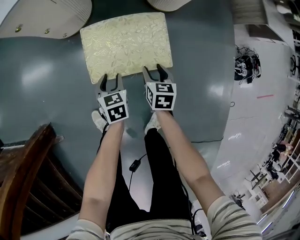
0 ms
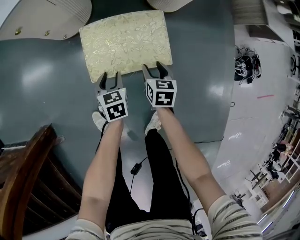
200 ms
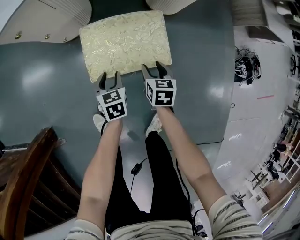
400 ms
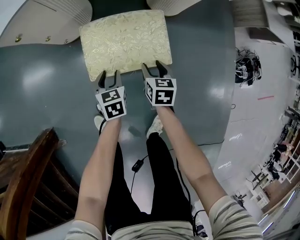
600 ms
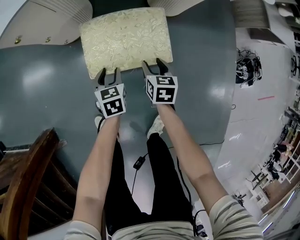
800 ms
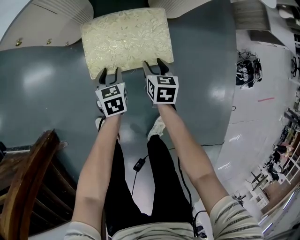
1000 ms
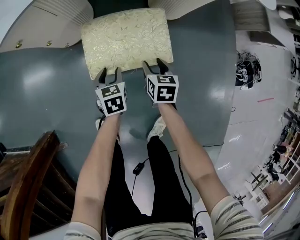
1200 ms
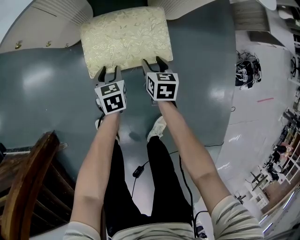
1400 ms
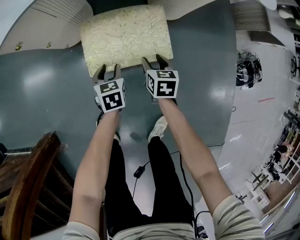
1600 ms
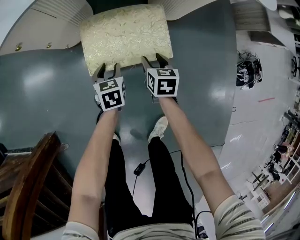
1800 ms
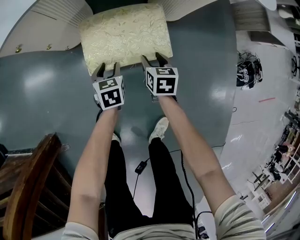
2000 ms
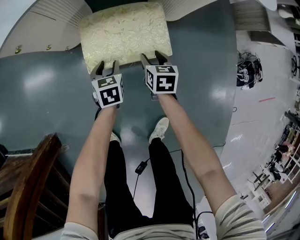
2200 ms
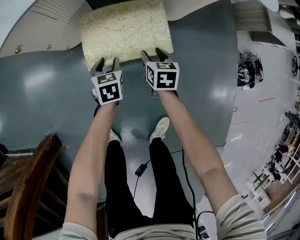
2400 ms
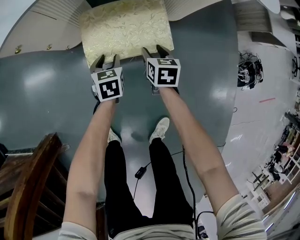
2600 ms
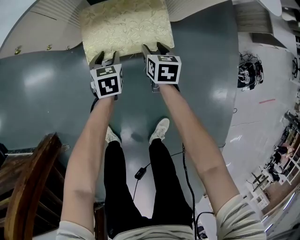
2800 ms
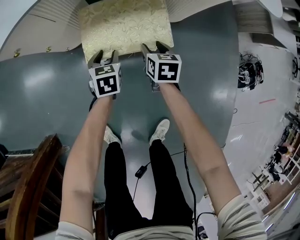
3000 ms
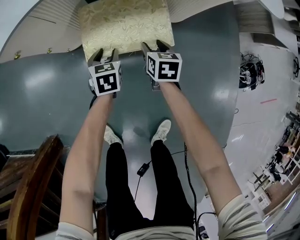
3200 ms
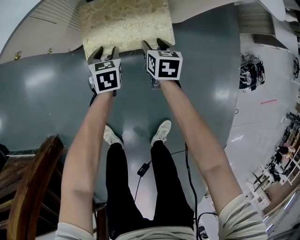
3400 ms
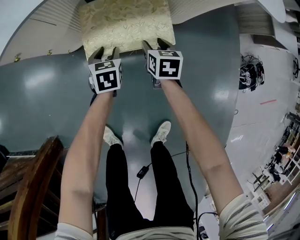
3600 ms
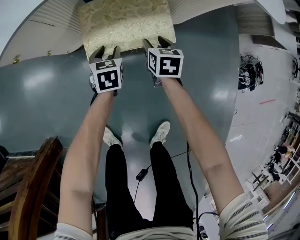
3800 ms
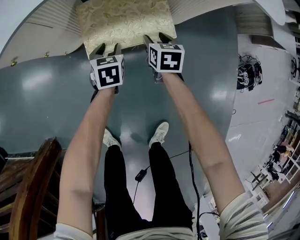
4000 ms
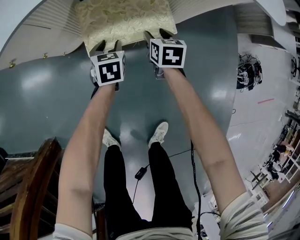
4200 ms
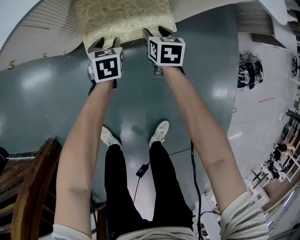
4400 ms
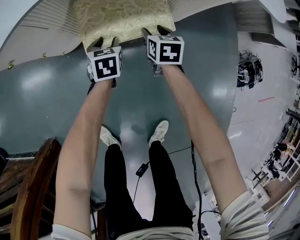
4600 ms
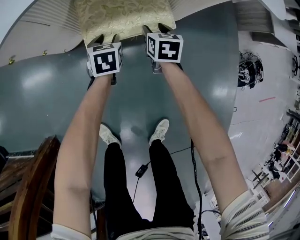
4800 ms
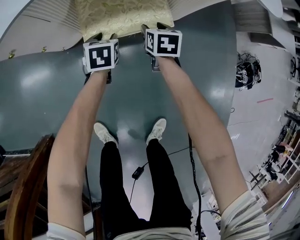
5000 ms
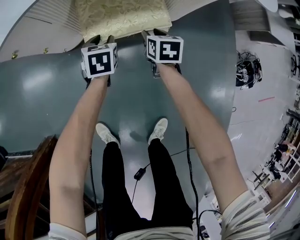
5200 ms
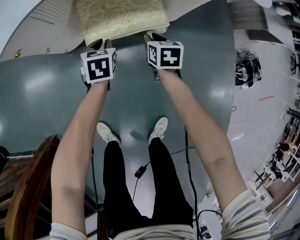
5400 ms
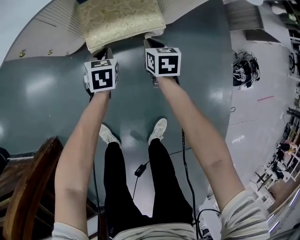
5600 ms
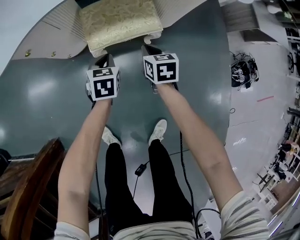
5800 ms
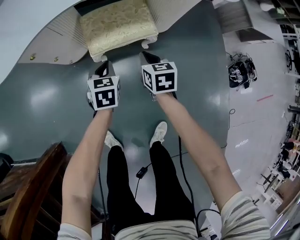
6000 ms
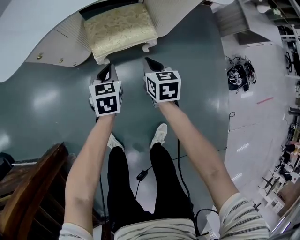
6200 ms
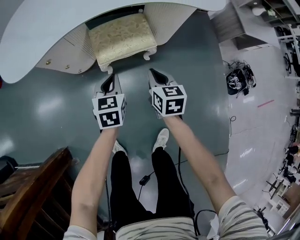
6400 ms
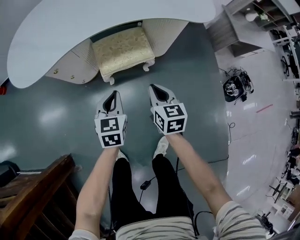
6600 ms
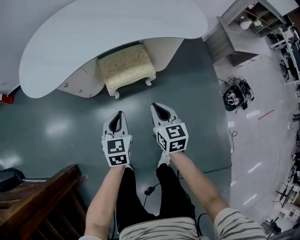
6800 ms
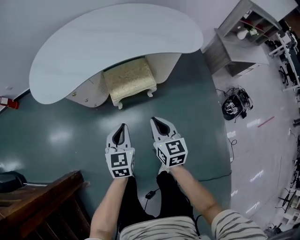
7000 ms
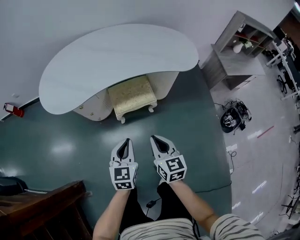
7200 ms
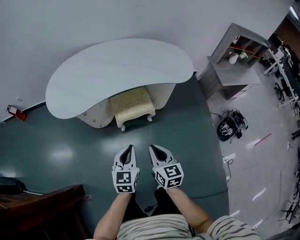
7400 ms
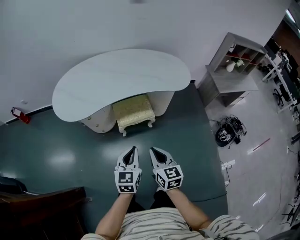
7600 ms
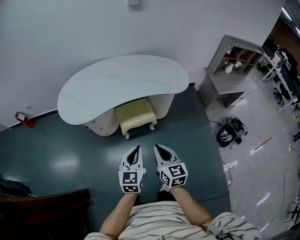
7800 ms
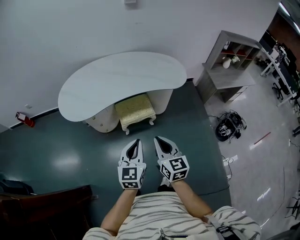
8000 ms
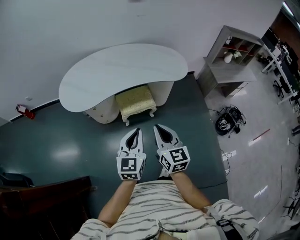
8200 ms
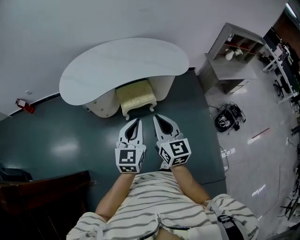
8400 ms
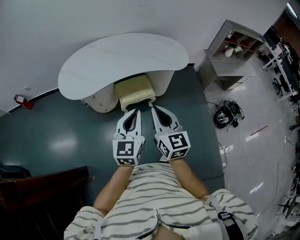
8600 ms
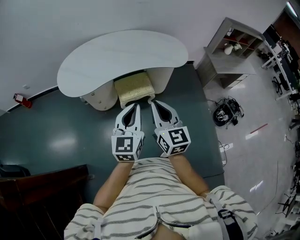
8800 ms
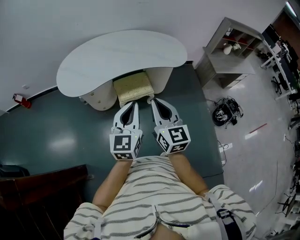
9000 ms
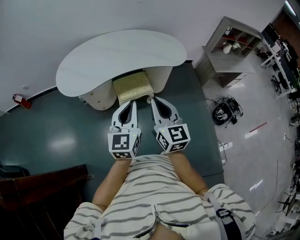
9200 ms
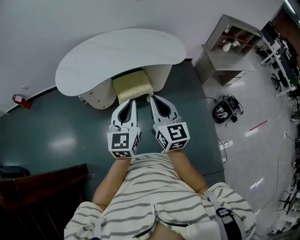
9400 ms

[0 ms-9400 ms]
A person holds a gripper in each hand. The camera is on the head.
0 ms to 1600 ms: Both grippers move forward, some 10 cm.
1600 ms to 3200 ms: The grippers both shift forward by some 10 cm.
3200 ms to 4800 ms: The grippers both shift forward by roughly 5 cm.
4800 ms to 6200 ms: The two grippers go roughly 20 cm upward and backward. The left gripper closes up, while the right gripper closes up.
6200 ms to 7800 ms: Both grippers move upward and backward, roughly 50 cm. The left gripper rotates some 30 degrees. The right gripper swivels some 20 degrees.
7800 ms to 9400 ms: The two grippers go roughly 10 cm upward.

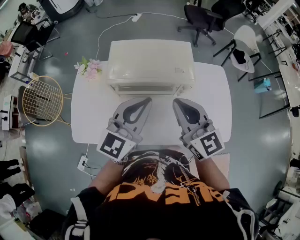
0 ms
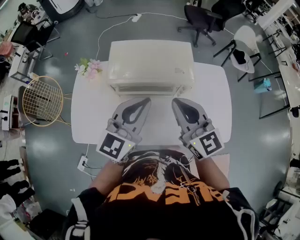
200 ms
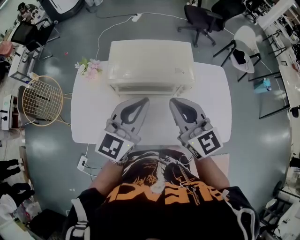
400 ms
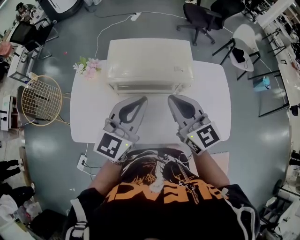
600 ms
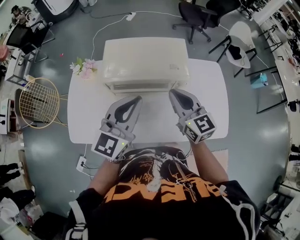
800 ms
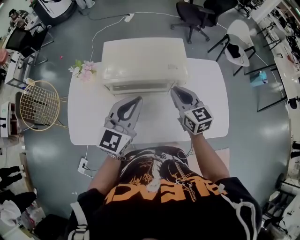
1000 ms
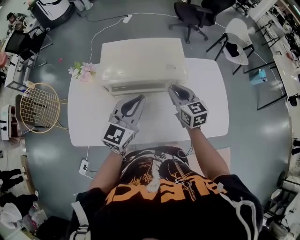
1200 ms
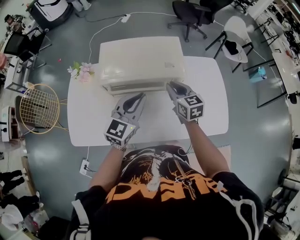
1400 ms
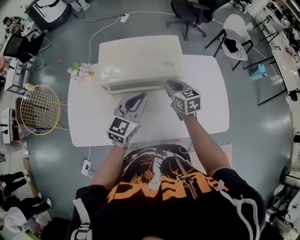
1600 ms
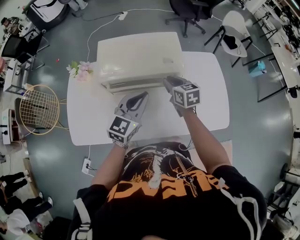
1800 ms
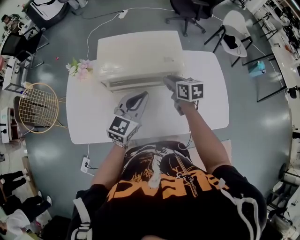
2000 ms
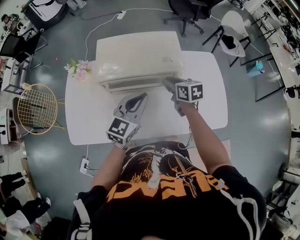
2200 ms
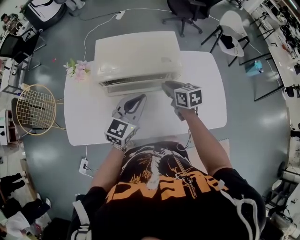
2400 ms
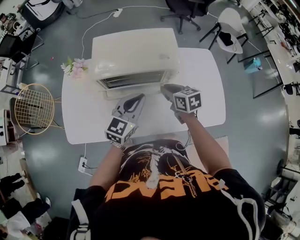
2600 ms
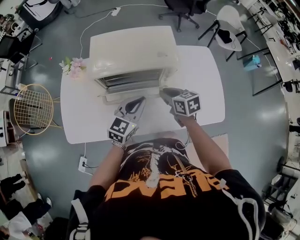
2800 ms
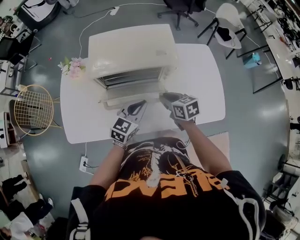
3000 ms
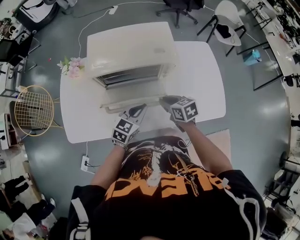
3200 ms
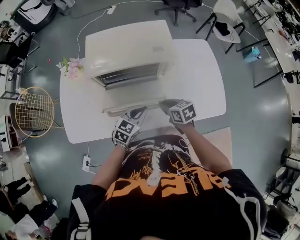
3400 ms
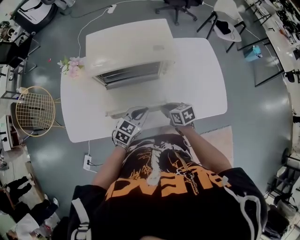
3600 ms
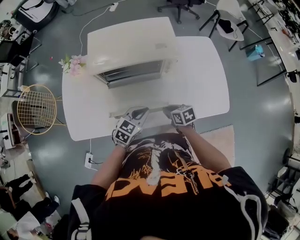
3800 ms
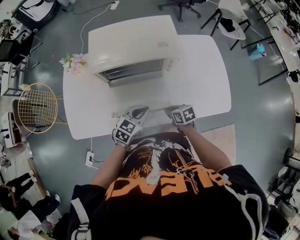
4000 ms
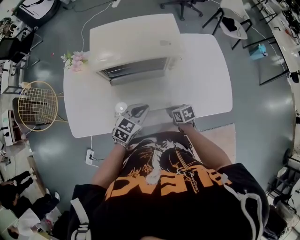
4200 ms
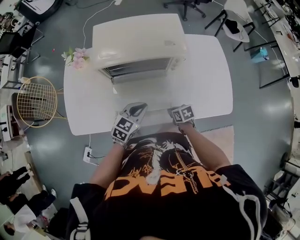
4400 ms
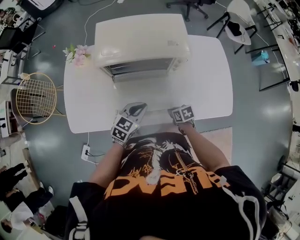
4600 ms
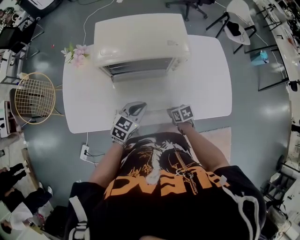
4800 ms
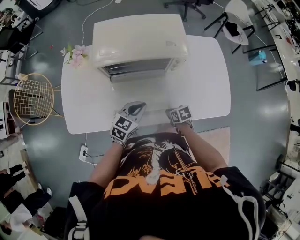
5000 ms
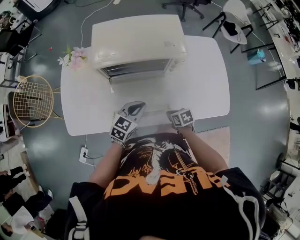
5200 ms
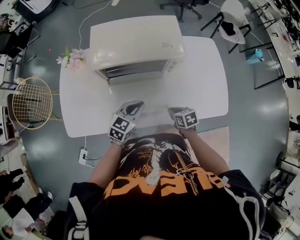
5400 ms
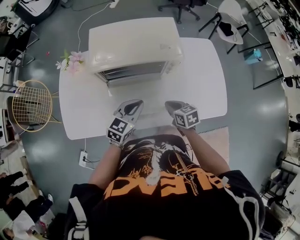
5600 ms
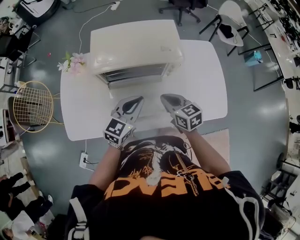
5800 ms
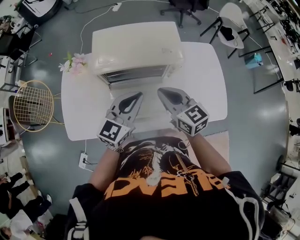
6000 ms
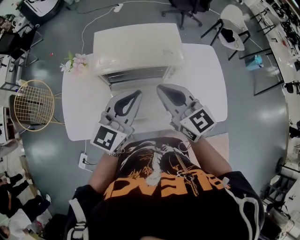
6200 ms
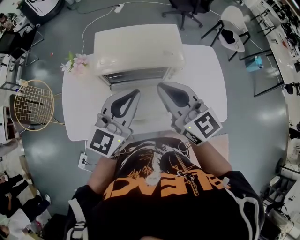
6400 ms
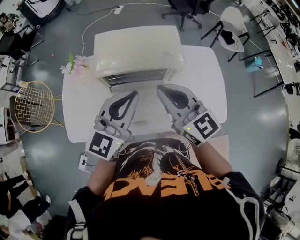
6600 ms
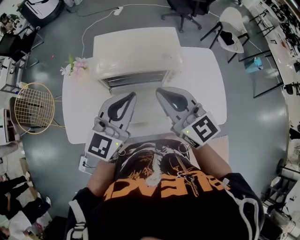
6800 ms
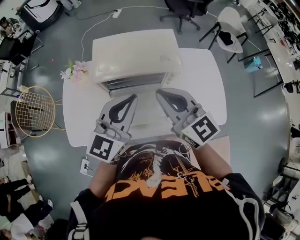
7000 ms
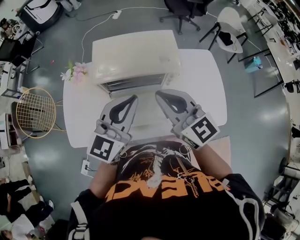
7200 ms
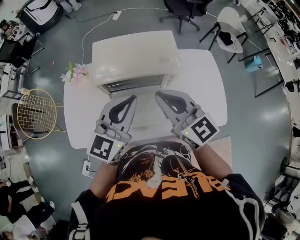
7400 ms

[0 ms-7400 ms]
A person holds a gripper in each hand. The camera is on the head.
0 ms to 1400 ms: The right gripper shifts roughly 20 cm downward and forward, and swivels some 30 degrees. The left gripper is displaced downward by some 10 cm.
1400 ms to 3000 ms: The right gripper travels backward and downward by about 10 cm, and swivels roughly 20 degrees. The left gripper moves downward, about 10 cm.
3000 ms to 4400 ms: The left gripper goes approximately 5 cm downward; the right gripper travels downward and backward by some 20 cm, and turns by approximately 20 degrees.
4400 ms to 6000 ms: The right gripper heads upward, covering approximately 30 cm, and points its fingers some 40 degrees further upward. Meanwhile the left gripper shifts roughly 15 cm upward, and rotates about 20 degrees.
6000 ms to 7400 ms: Both grippers move upward, approximately 10 cm.

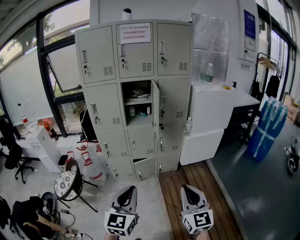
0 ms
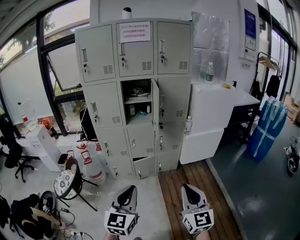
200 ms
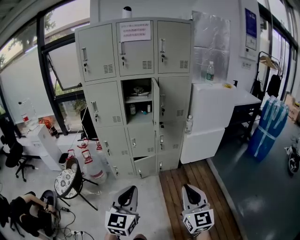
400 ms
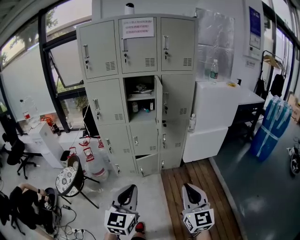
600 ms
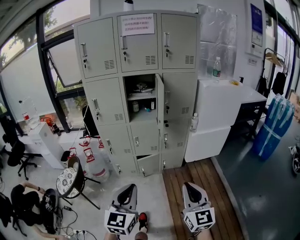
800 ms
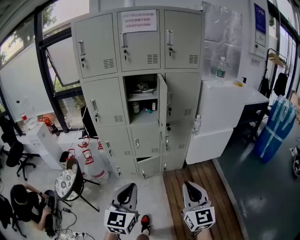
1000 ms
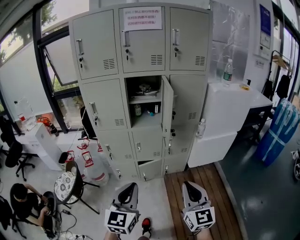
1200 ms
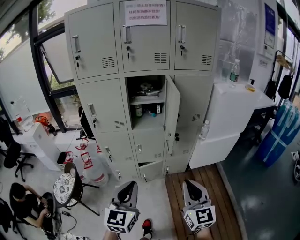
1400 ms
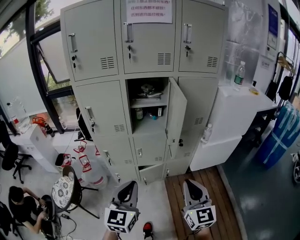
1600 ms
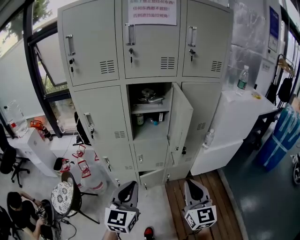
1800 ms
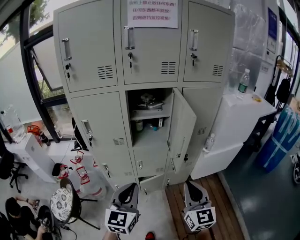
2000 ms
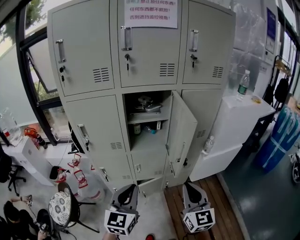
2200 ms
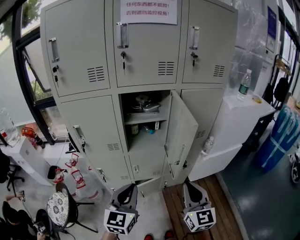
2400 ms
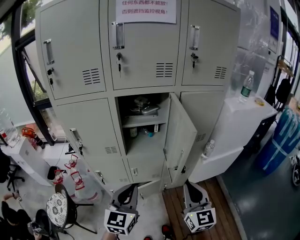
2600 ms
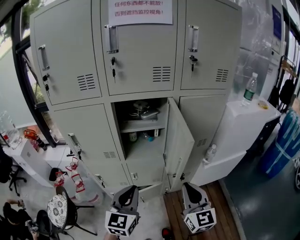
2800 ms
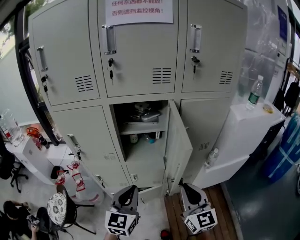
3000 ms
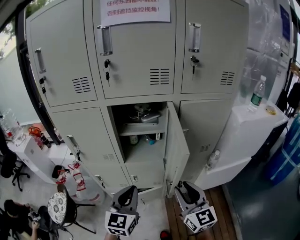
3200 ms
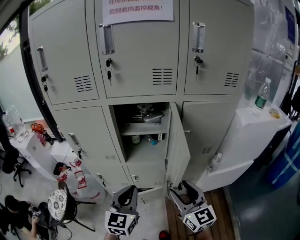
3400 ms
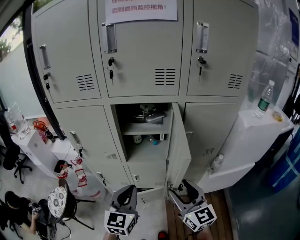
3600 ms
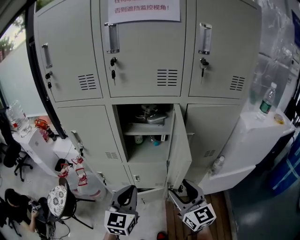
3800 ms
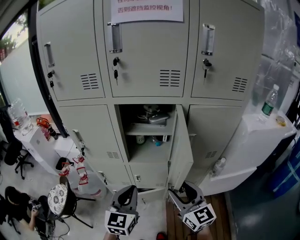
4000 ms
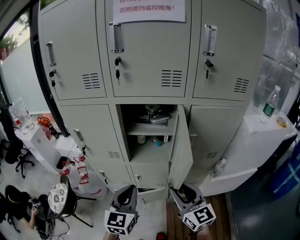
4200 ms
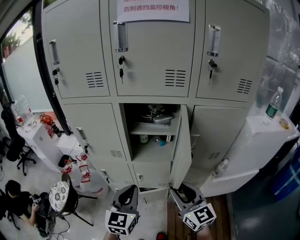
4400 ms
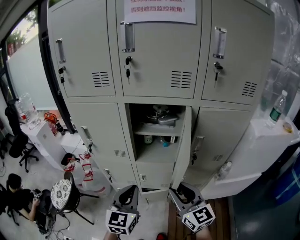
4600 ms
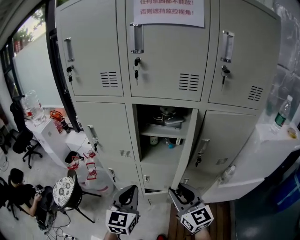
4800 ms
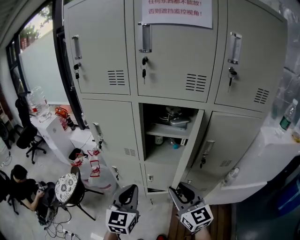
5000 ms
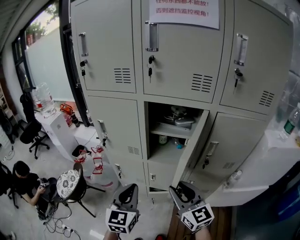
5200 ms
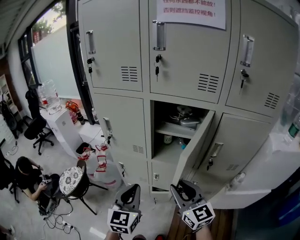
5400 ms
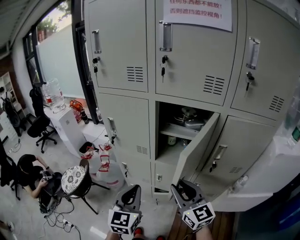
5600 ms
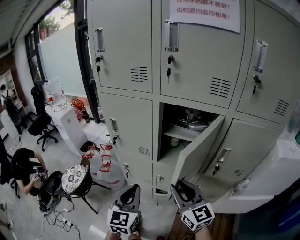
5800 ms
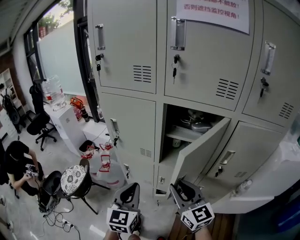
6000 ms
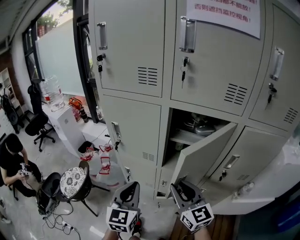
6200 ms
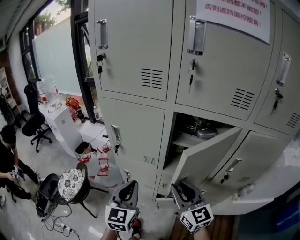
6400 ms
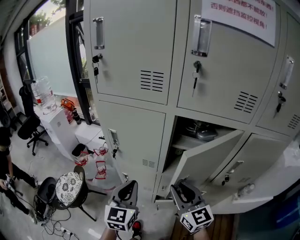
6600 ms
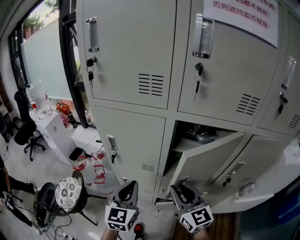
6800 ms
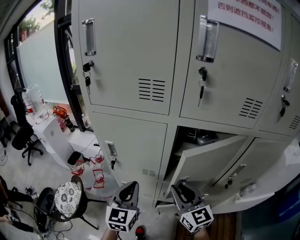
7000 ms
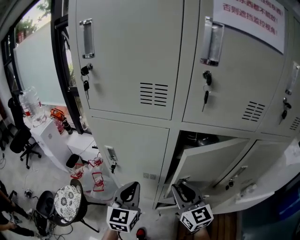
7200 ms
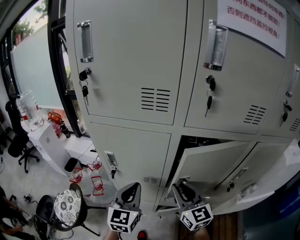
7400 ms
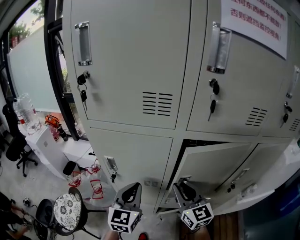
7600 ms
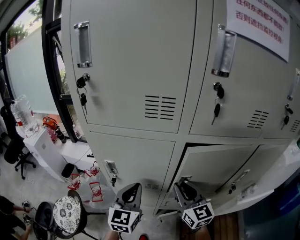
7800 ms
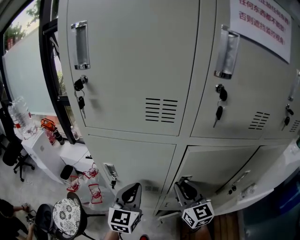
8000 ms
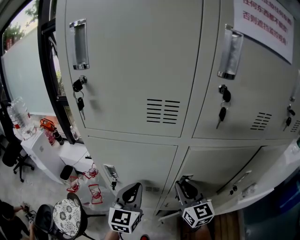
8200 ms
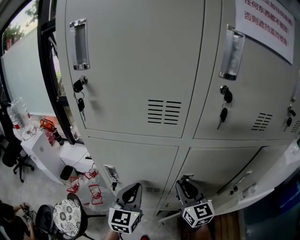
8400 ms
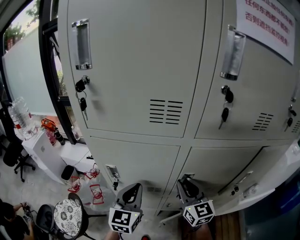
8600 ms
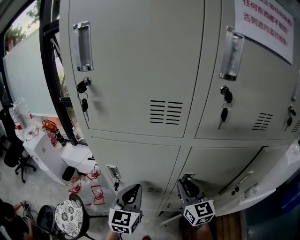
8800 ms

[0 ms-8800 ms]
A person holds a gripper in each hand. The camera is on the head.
0 ms to 1400 ms: The grippers both shift forward by approximately 20 cm.
1400 ms to 3000 ms: The two grippers go about 25 cm forward.
3000 ms to 4400 ms: The right gripper shifts by some 5 cm, swivels about 20 degrees, and opens its fingers.
4400 ms to 5800 ms: The right gripper is displaced to the left and forward by roughly 10 cm. The left gripper heads to the left, covering roughly 10 cm.
5800 ms to 7400 ms: Both grippers travel together forward, approximately 20 cm.
7400 ms to 8800 ms: The left gripper changes place by about 5 cm. Meanwhile the right gripper travels forward by roughly 5 cm.
